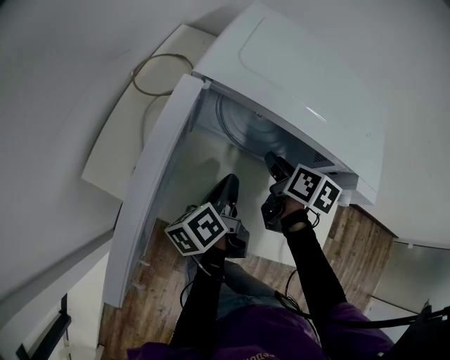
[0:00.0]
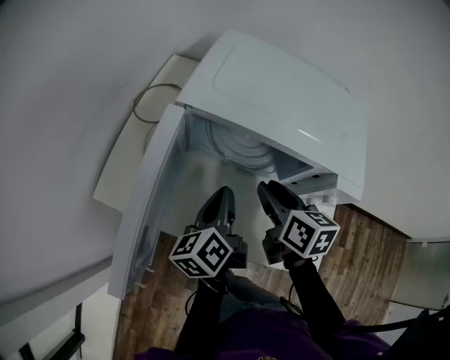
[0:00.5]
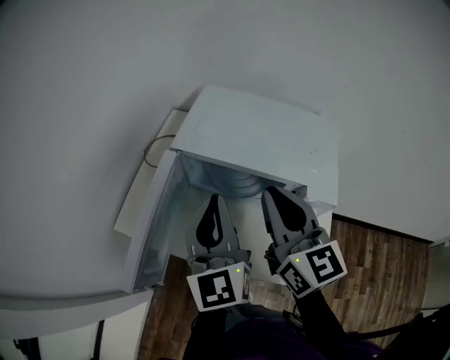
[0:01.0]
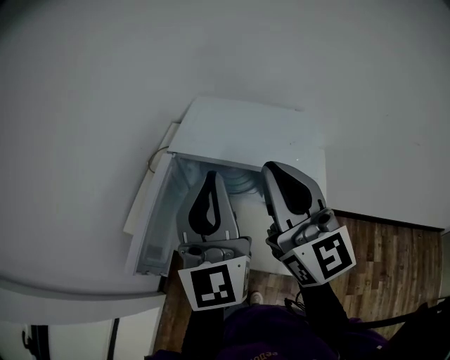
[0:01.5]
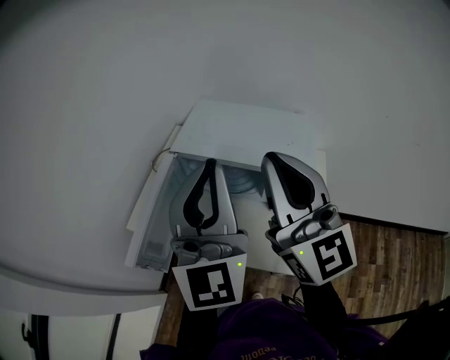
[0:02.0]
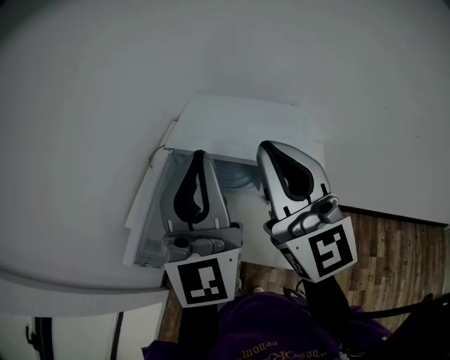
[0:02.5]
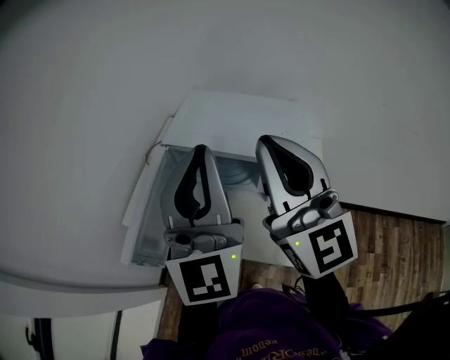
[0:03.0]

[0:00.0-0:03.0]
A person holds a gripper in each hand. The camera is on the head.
0:00.0 to 0:01.5: The grippers both shift upward by approximately 40 cm. The left gripper rolls clockwise, seen from behind, by roughly 70 degrees, while the right gripper tilts its fingers roughly 60 degrees upward, and closes its fingers.
0:01.5 to 0:03.0: The left gripper shifts by roughly 5 cm.

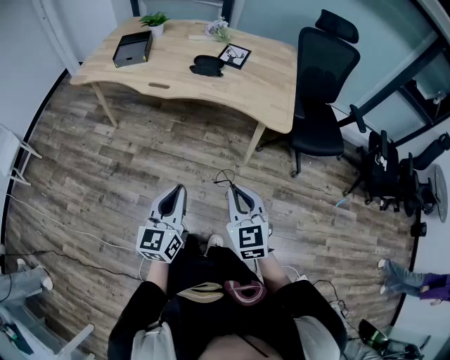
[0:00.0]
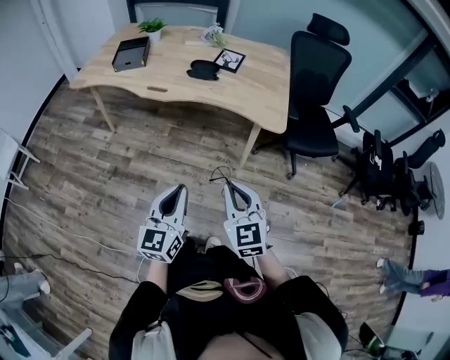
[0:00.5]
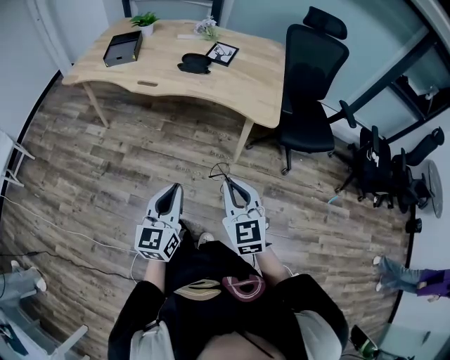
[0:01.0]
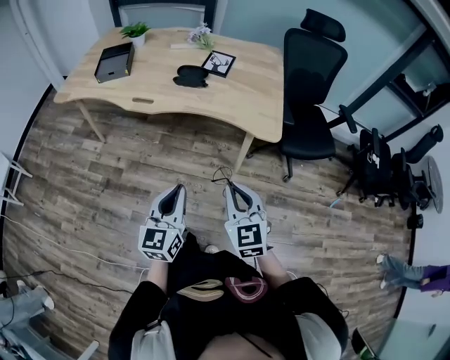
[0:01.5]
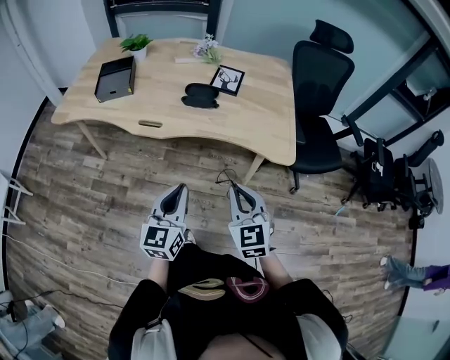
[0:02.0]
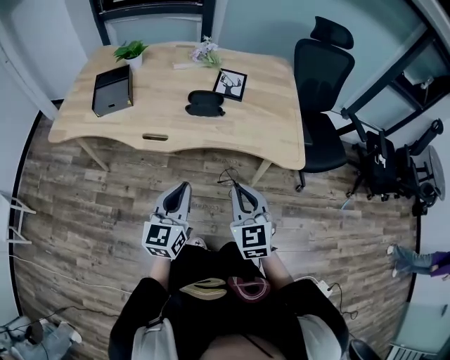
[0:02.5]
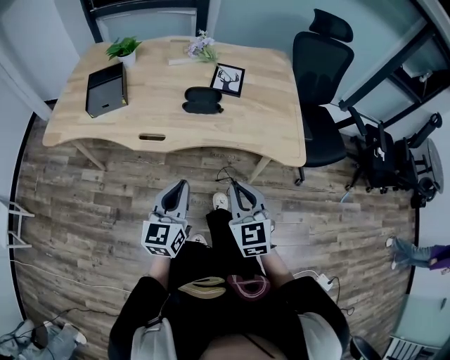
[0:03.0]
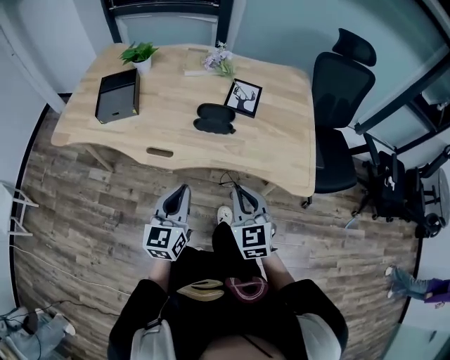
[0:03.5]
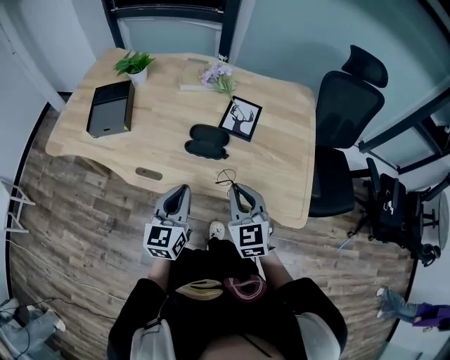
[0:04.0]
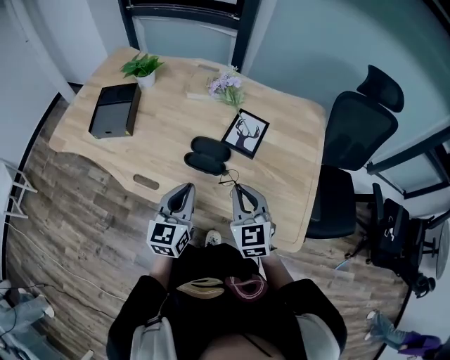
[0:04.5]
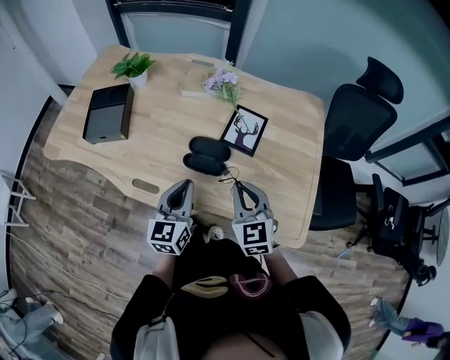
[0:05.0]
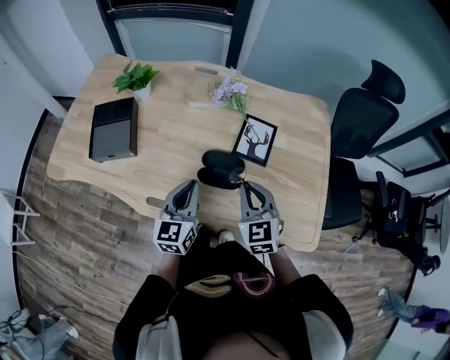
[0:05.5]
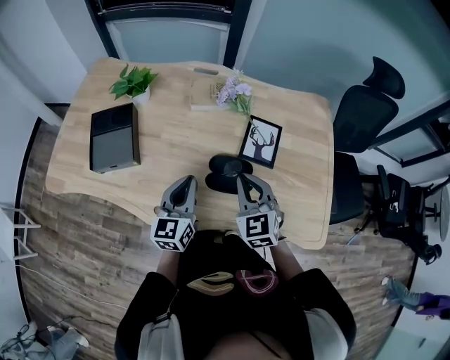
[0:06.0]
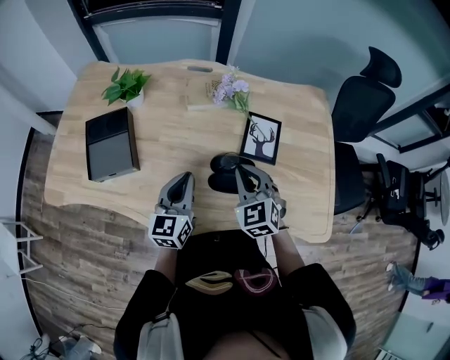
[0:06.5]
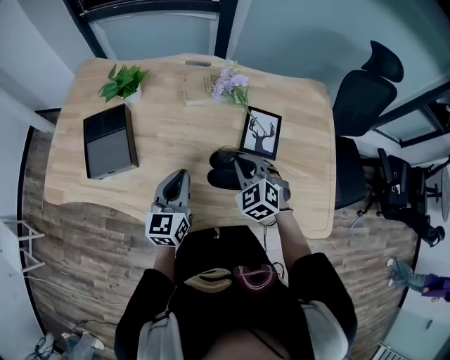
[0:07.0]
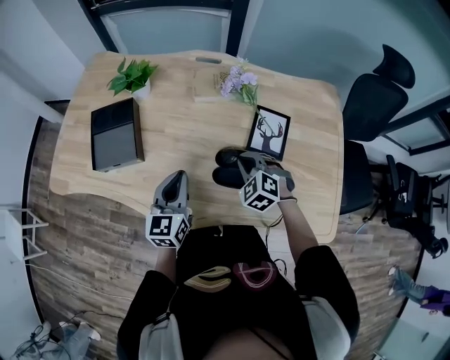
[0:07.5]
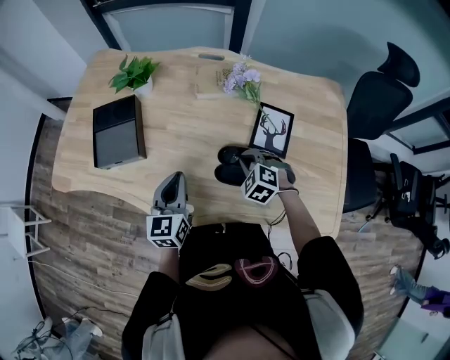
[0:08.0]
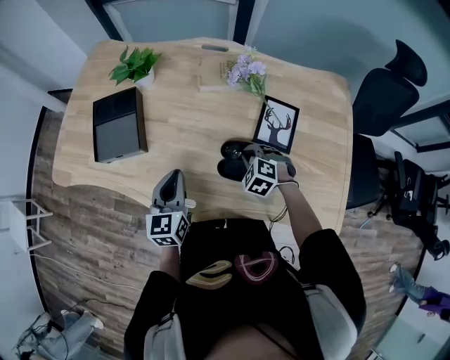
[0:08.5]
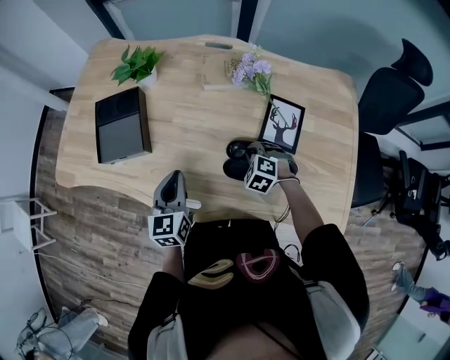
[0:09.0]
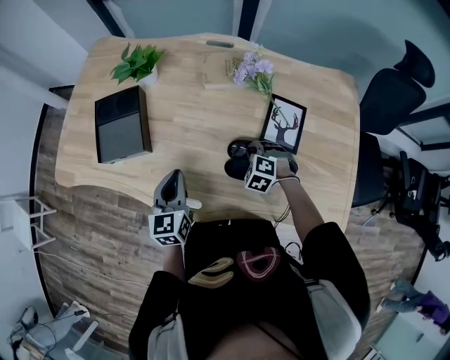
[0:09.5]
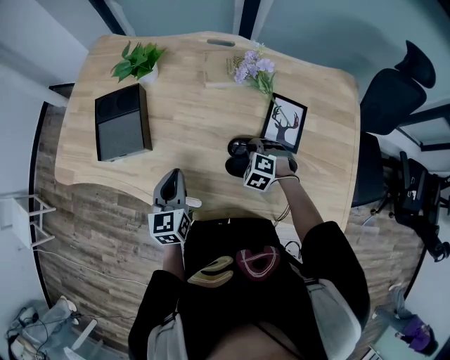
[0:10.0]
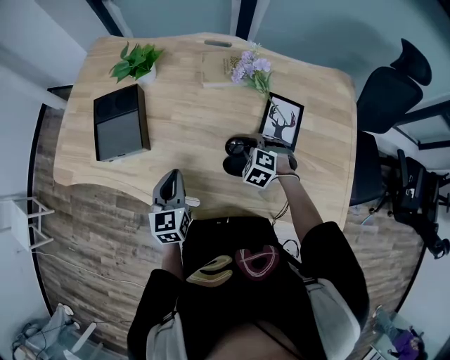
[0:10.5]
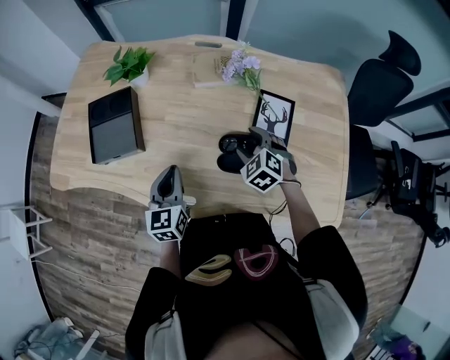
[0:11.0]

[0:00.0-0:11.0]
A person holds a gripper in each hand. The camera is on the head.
0:00.0 to 0:02.0: The grippers both shift forward by roughly 20 cm.
0:02.0 to 0:03.5: The left gripper is displaced forward and to the left by about 15 cm, while the right gripper shifts approximately 15 cm forward.
0:03.5 to 0:05.5: Both grippers travel together forward, roughly 25 cm.
0:05.5 to 0:07.5: The left gripper is displaced to the left and forward by approximately 10 cm, while the right gripper moves forward, downward and to the left, some 15 cm, and changes its angle by some 40 degrees.
0:07.5 to 0:09.0: The right gripper shifts about 10 cm downward. The left gripper ends up about 5 cm from where it was.
0:09.0 to 0:11.0: The right gripper travels upward by approximately 10 cm, and opens.

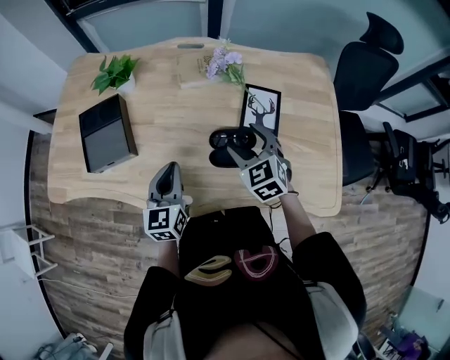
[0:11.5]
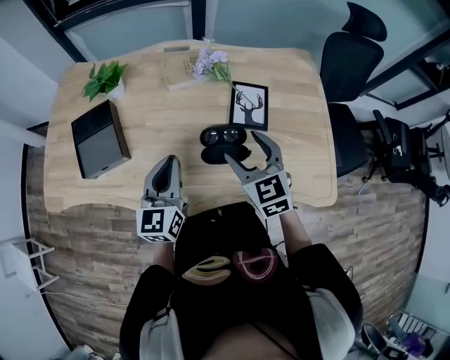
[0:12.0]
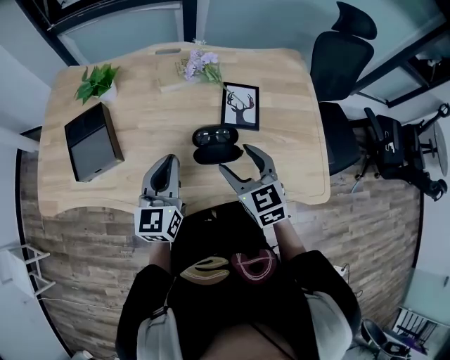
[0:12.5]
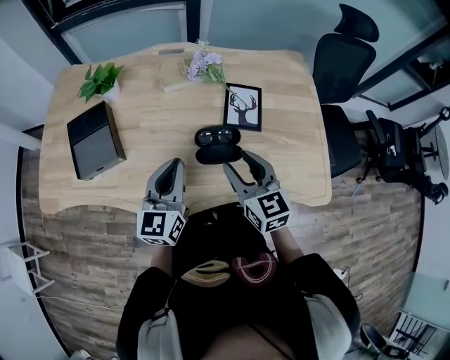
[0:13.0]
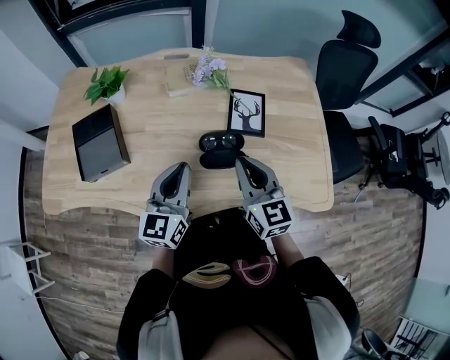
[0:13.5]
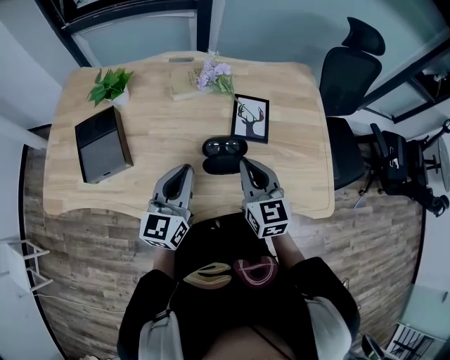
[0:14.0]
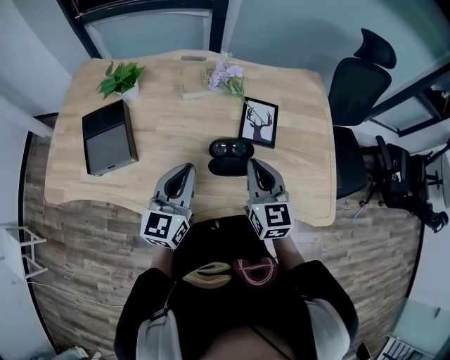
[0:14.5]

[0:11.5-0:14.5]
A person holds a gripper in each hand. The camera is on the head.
0:11.5 to 0:13.0: The left gripper travels upward and to the right by roughly 10 cm, while the right gripper goes about 10 cm backward, and turns by roughly 30 degrees.
0:13.0 to 0:14.5: The right gripper closes.

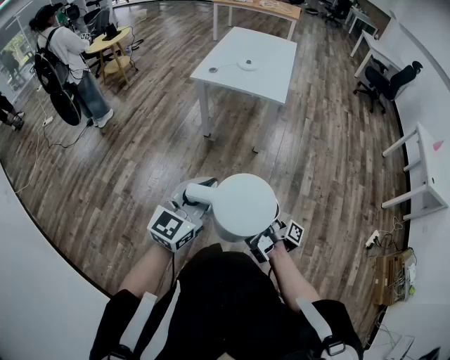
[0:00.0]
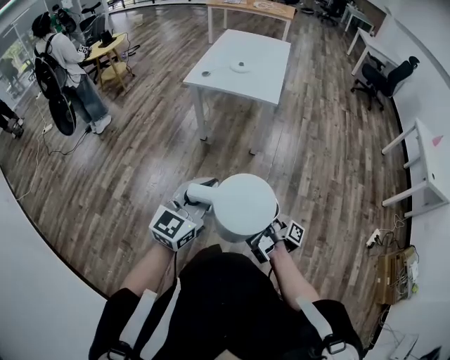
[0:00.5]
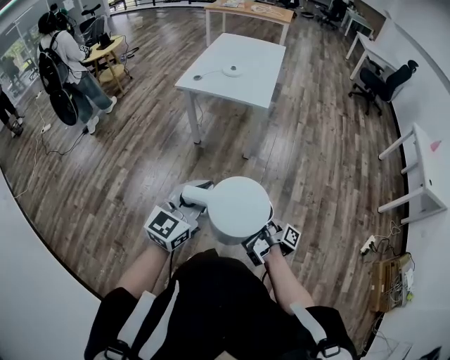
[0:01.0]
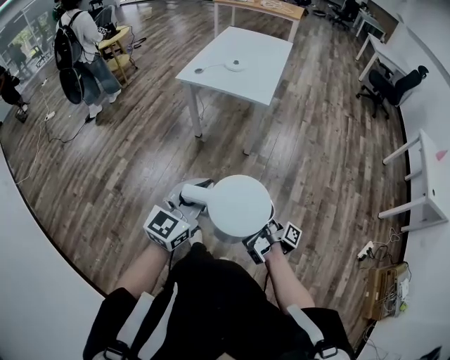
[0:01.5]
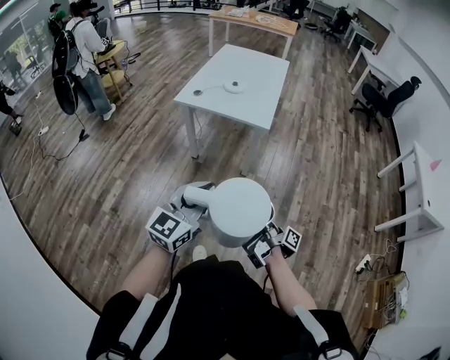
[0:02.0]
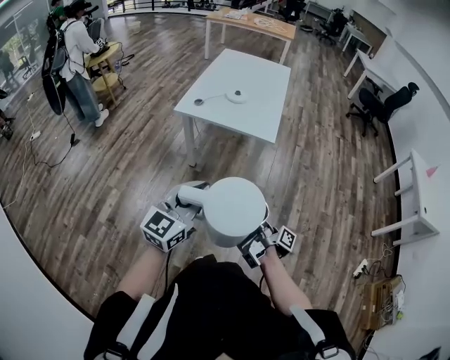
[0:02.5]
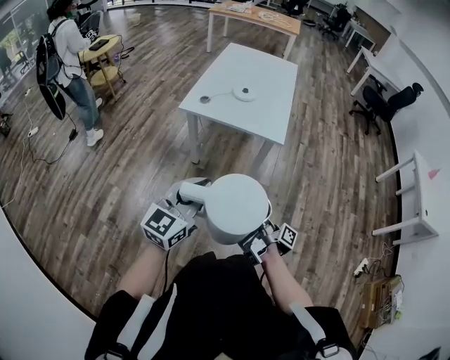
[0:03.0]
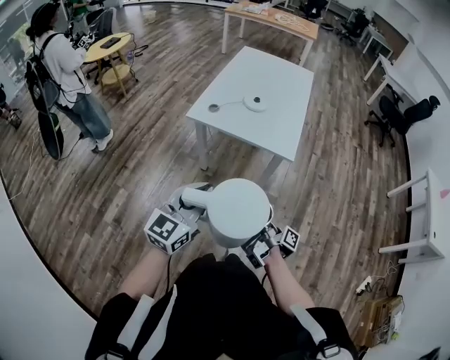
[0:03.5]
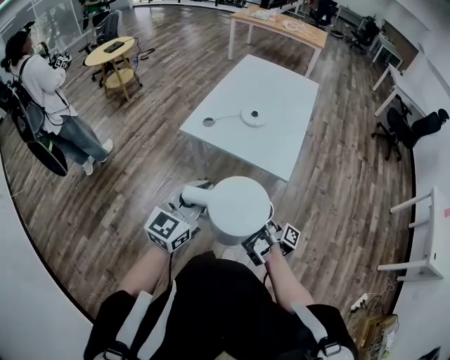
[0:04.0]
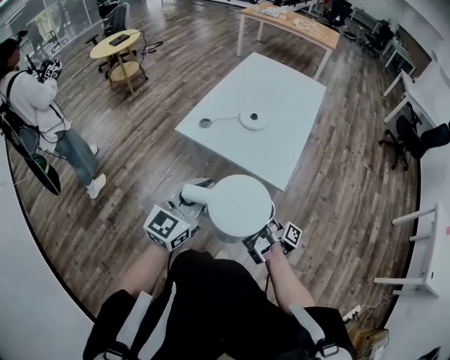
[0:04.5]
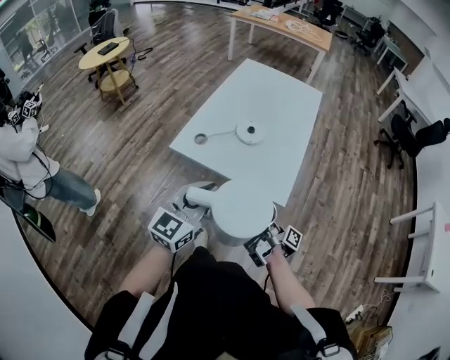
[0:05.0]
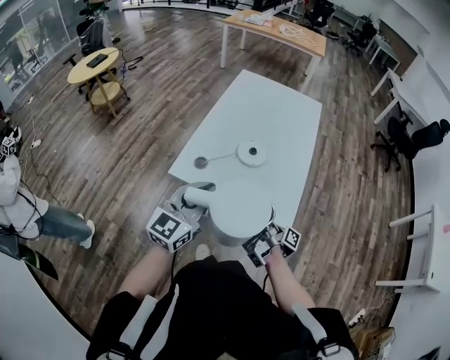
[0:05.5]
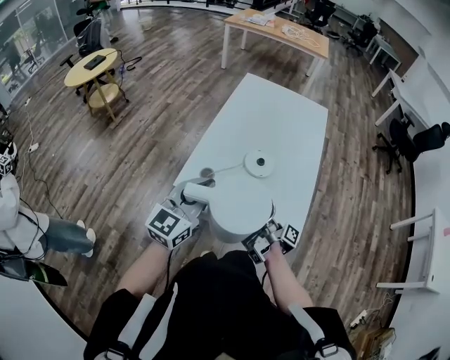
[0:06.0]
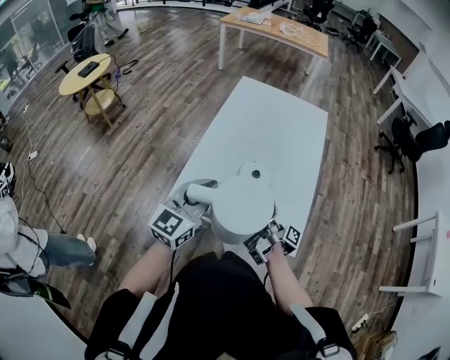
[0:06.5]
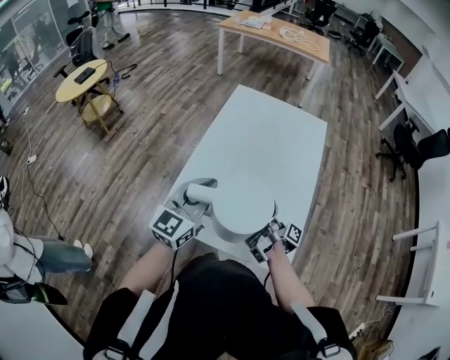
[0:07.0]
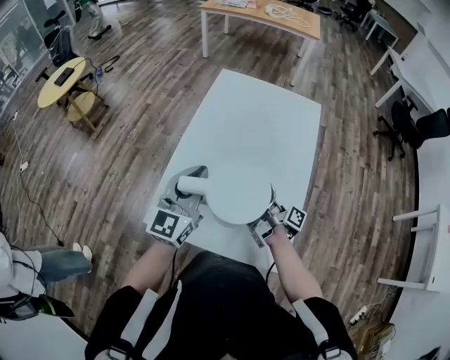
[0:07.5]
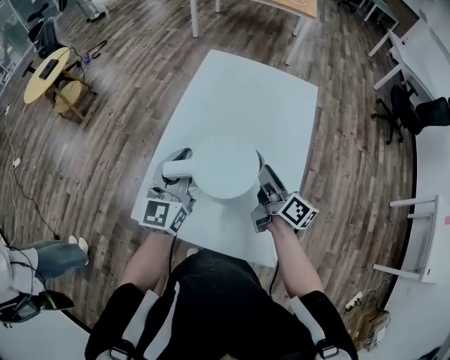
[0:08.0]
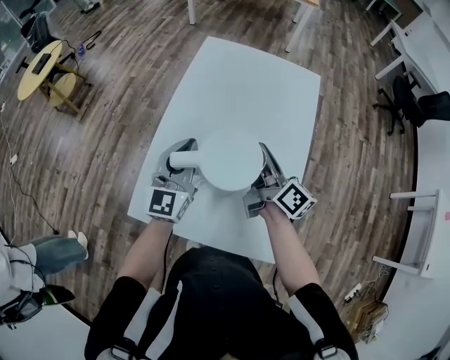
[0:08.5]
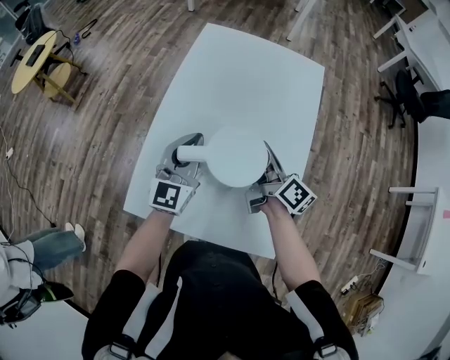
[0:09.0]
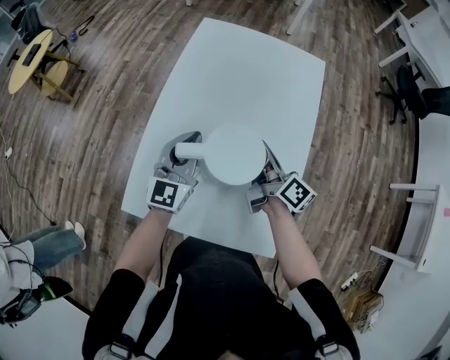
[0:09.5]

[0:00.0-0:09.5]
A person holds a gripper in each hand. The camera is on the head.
0:00.0 to 0:02.0: The left gripper shifts by roughly 15 cm.
0:02.0 to 0:04.0: The left gripper ends up about 25 cm from where it was.
0:04.0 to 0:05.5: The left gripper moves about 20 cm.
0:05.5 to 0:07.5: The left gripper shifts by approximately 25 cm.
0:07.5 to 0:09.5: The left gripper heads downward, covering some 10 cm.
